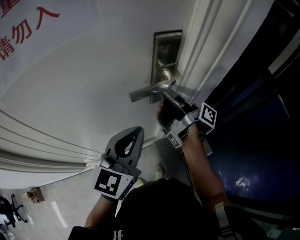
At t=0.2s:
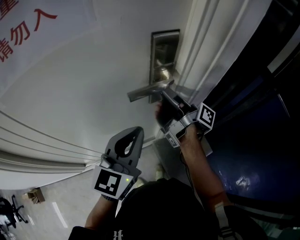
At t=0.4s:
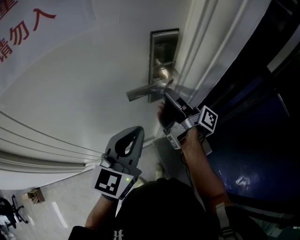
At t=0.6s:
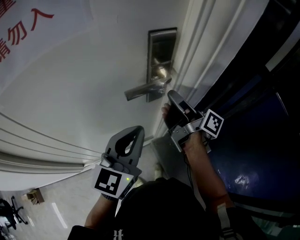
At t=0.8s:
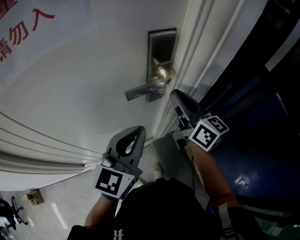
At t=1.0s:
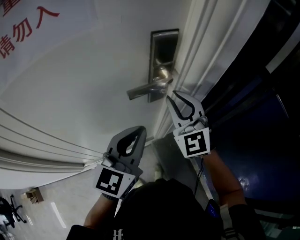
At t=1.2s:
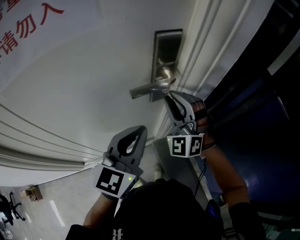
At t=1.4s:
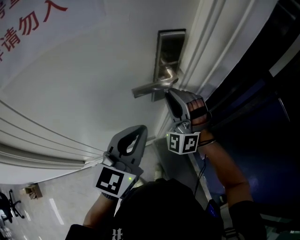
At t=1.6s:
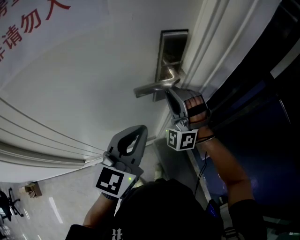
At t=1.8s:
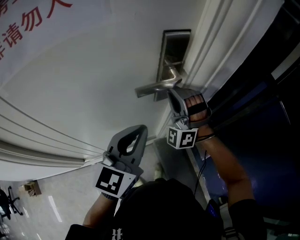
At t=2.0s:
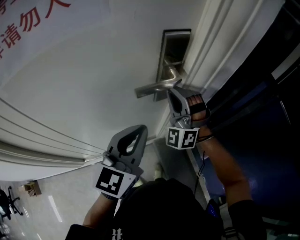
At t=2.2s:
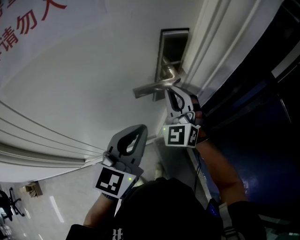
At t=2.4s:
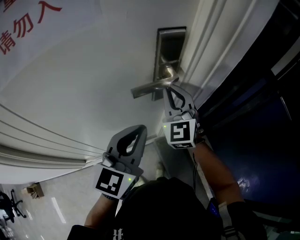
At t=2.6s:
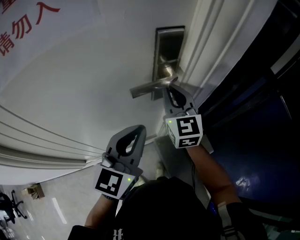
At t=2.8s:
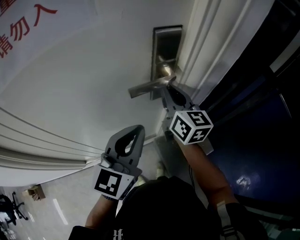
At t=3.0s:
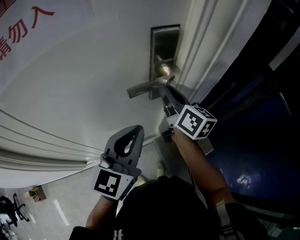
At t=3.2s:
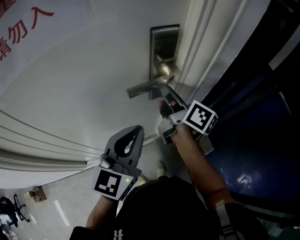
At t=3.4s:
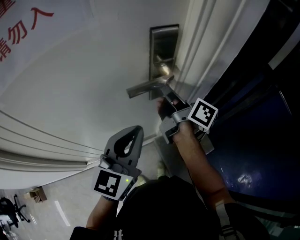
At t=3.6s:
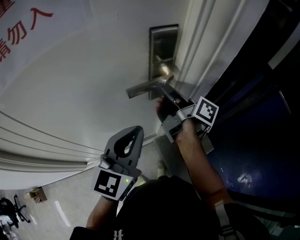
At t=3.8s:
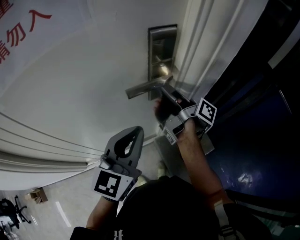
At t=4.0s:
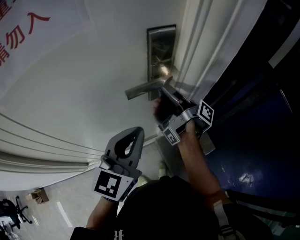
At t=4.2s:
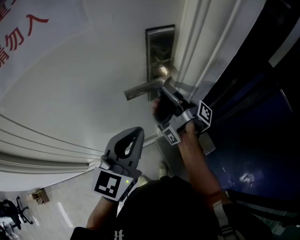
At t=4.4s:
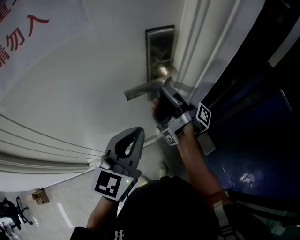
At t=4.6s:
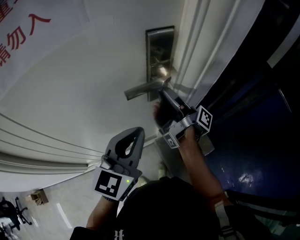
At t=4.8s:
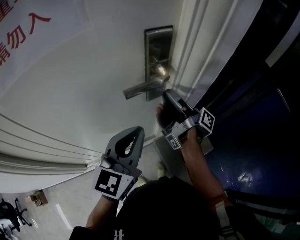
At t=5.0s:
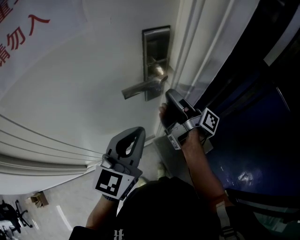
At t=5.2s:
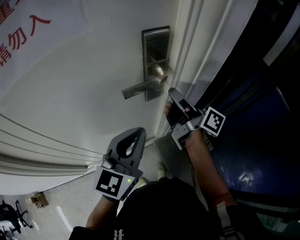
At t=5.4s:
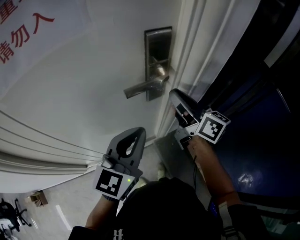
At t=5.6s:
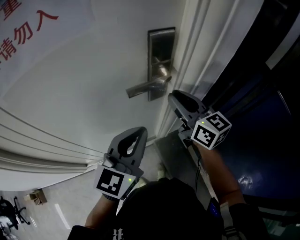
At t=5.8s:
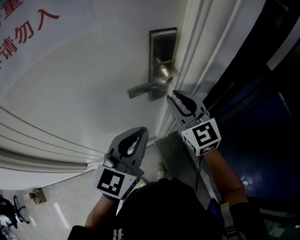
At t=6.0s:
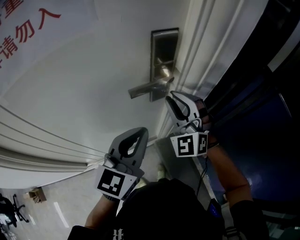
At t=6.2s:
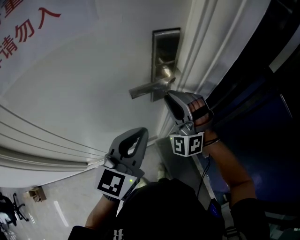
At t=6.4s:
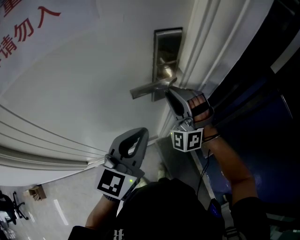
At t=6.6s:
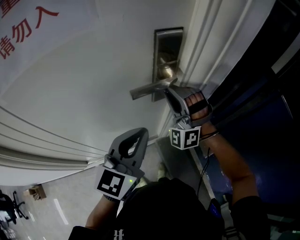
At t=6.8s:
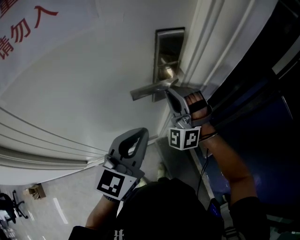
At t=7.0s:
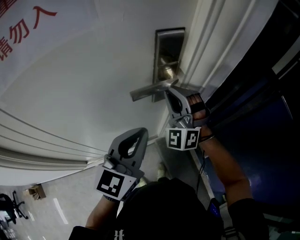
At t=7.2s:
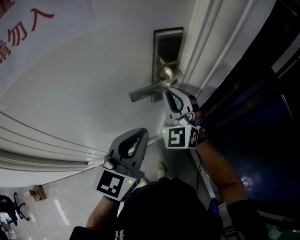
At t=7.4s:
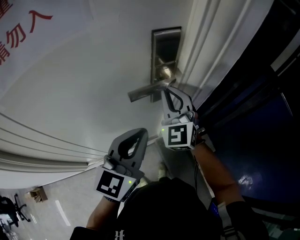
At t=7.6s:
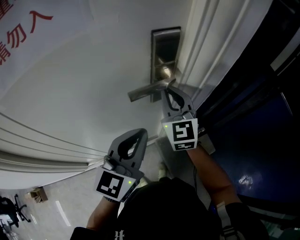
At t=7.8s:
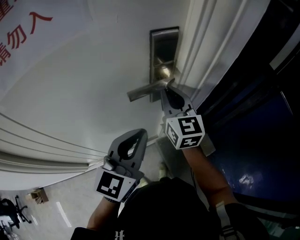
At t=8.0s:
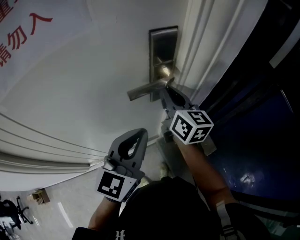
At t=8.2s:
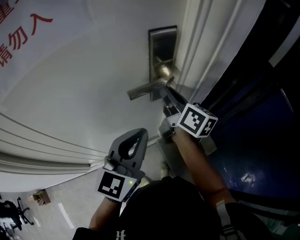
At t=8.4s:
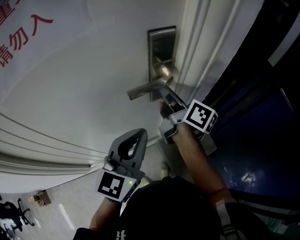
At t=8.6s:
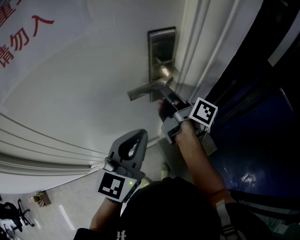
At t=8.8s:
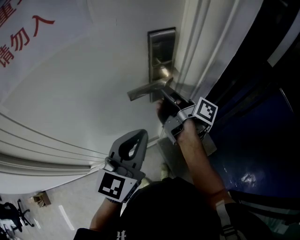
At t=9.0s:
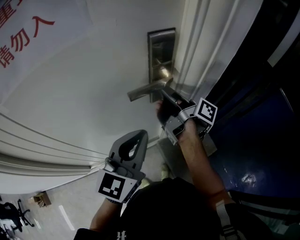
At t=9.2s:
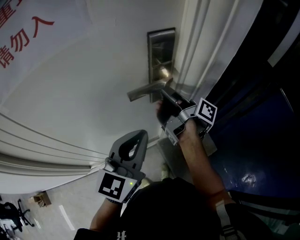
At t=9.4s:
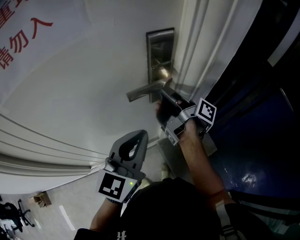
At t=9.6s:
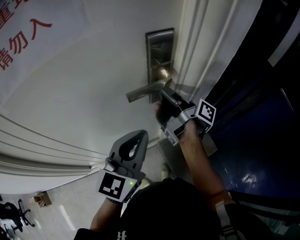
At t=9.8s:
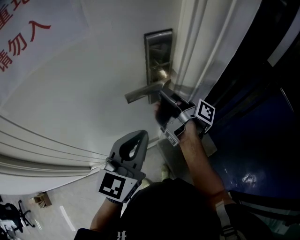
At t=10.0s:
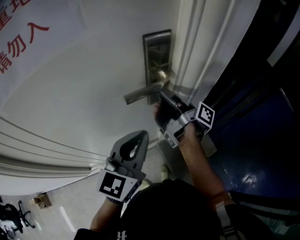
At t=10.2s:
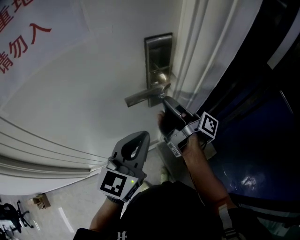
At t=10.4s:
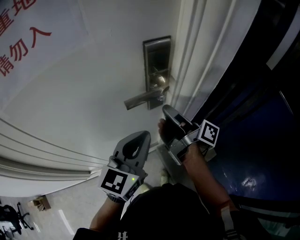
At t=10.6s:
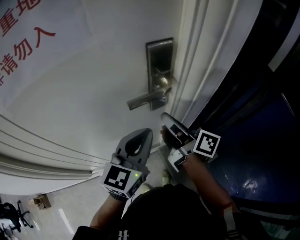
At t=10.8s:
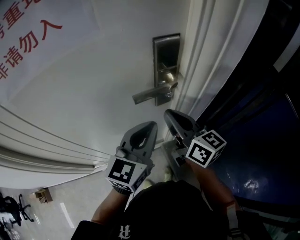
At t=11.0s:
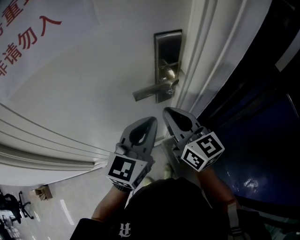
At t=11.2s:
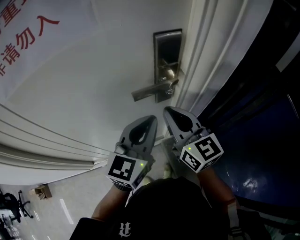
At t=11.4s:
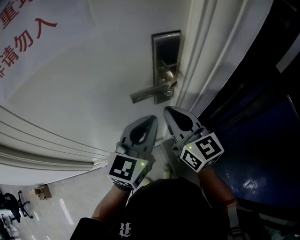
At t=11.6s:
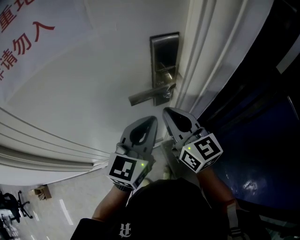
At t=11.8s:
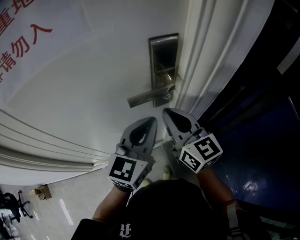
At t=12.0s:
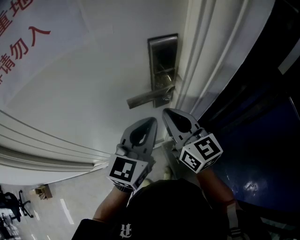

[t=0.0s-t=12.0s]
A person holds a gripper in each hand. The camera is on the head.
t=0.0s to t=1.6s: The right gripper turns by some 180 degrees.
t=1.6s to t=3.0s: The right gripper rolls clockwise, seen from behind, by about 120 degrees.
t=3.0s to t=4.4s: The right gripper rotates around the line of its fingers by some 60 degrees, clockwise from behind.
t=4.4s to t=6.0s: The right gripper goes about 5 cm backward, and rolls counterclockwise, seen from behind, by some 160 degrees.
t=6.0s to t=7.6s: The right gripper swivels about 40 degrees.
t=7.6s to t=9.0s: The right gripper rotates around the line of its fingers by roughly 110 degrees, clockwise from behind.
t=9.0s to t=10.4s: The grippers make only small movements.
t=10.4s to t=12.0s: The right gripper rotates around the line of its fingers by approximately 70 degrees, counterclockwise from behind.

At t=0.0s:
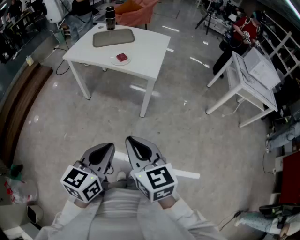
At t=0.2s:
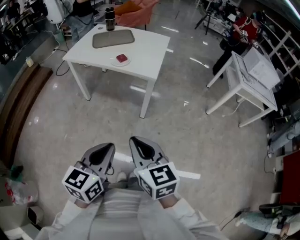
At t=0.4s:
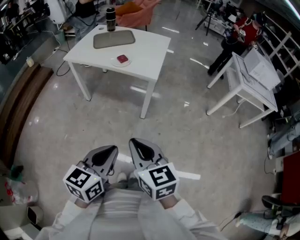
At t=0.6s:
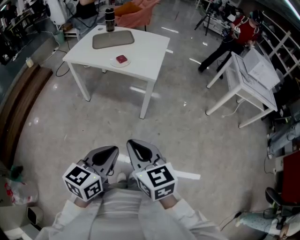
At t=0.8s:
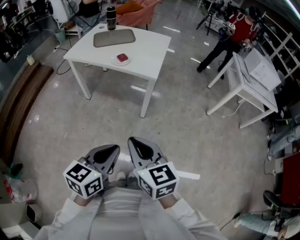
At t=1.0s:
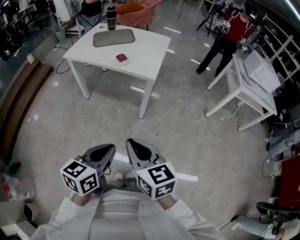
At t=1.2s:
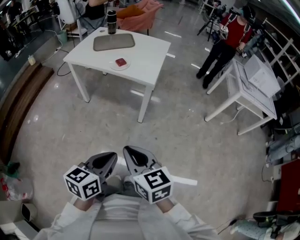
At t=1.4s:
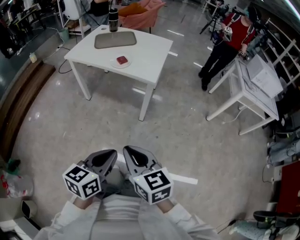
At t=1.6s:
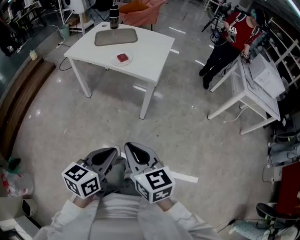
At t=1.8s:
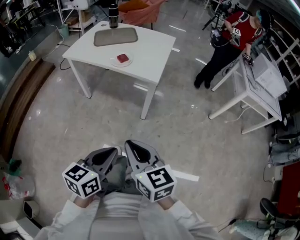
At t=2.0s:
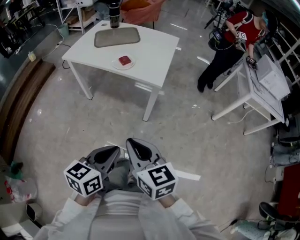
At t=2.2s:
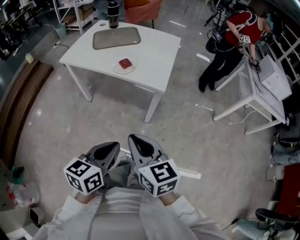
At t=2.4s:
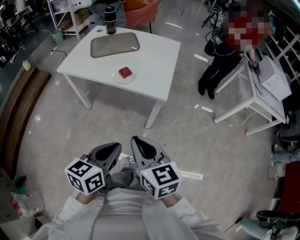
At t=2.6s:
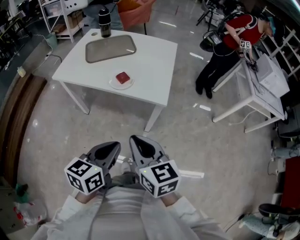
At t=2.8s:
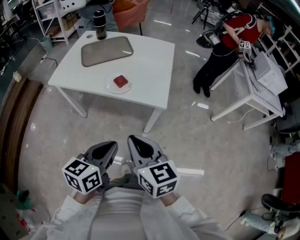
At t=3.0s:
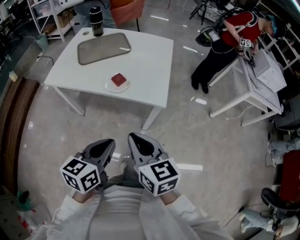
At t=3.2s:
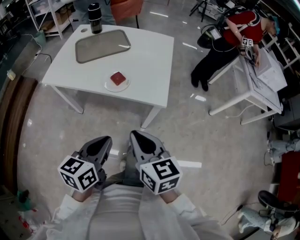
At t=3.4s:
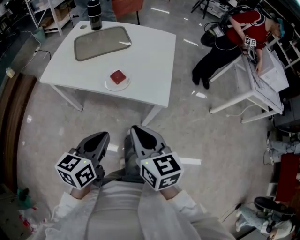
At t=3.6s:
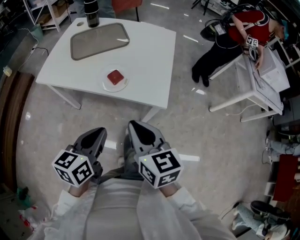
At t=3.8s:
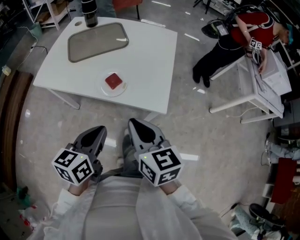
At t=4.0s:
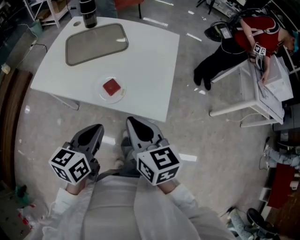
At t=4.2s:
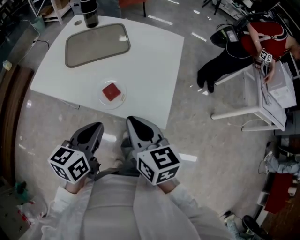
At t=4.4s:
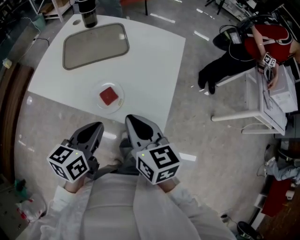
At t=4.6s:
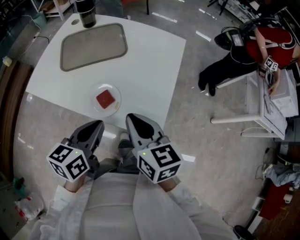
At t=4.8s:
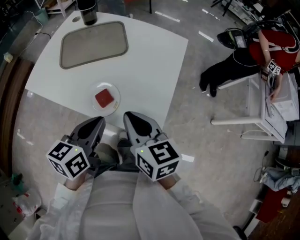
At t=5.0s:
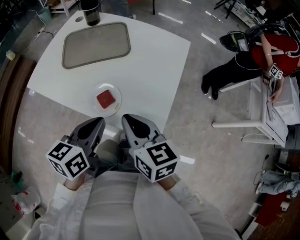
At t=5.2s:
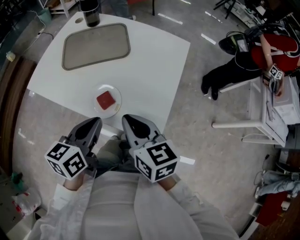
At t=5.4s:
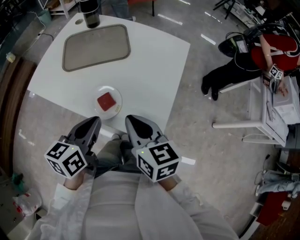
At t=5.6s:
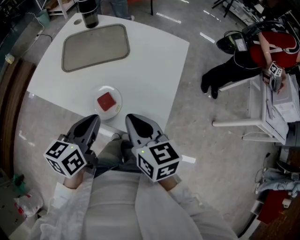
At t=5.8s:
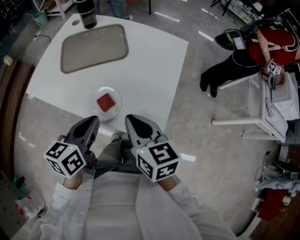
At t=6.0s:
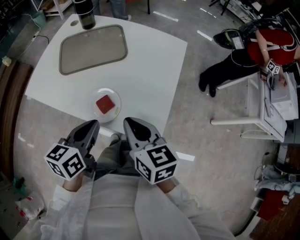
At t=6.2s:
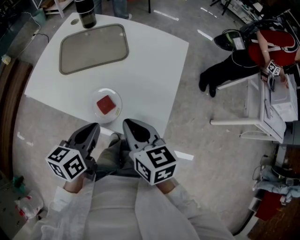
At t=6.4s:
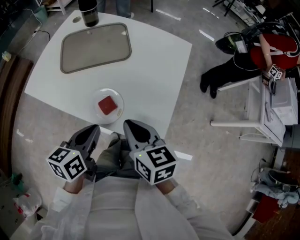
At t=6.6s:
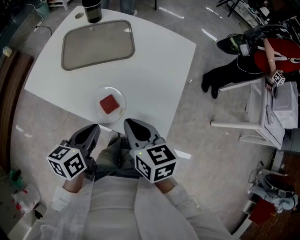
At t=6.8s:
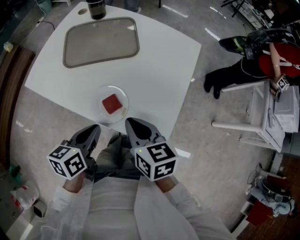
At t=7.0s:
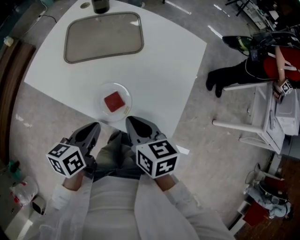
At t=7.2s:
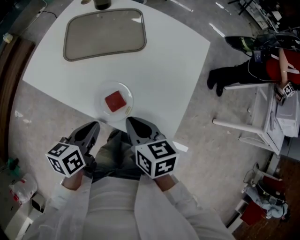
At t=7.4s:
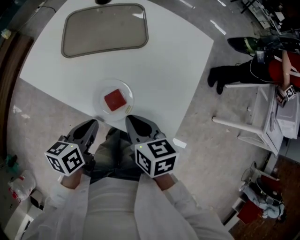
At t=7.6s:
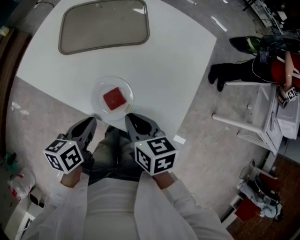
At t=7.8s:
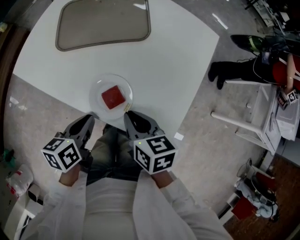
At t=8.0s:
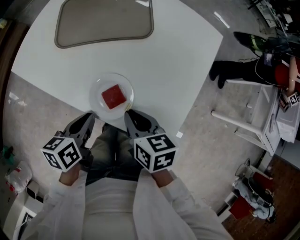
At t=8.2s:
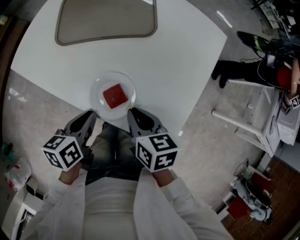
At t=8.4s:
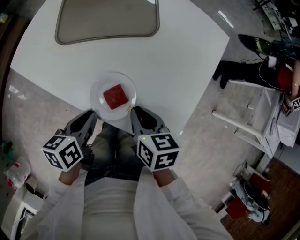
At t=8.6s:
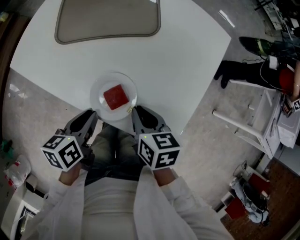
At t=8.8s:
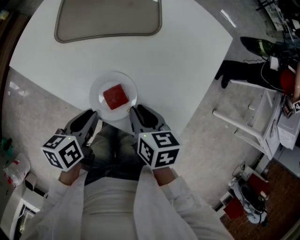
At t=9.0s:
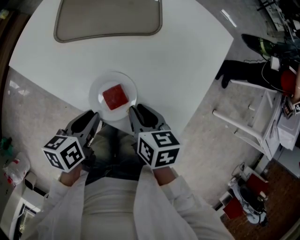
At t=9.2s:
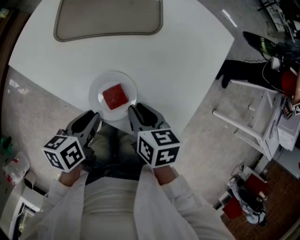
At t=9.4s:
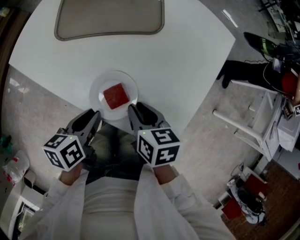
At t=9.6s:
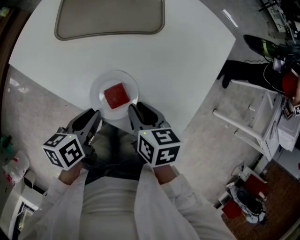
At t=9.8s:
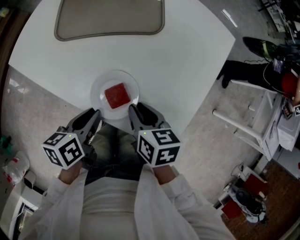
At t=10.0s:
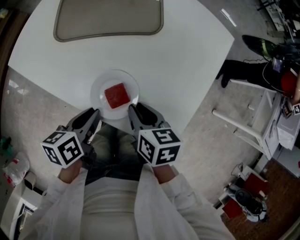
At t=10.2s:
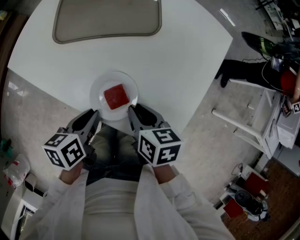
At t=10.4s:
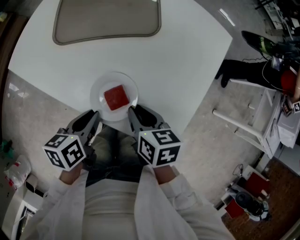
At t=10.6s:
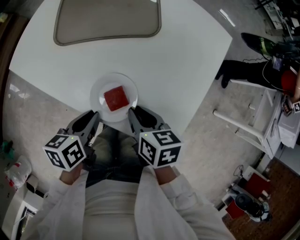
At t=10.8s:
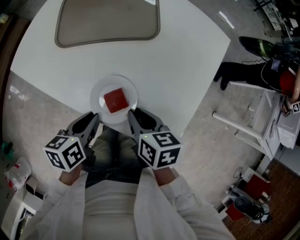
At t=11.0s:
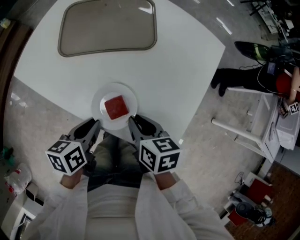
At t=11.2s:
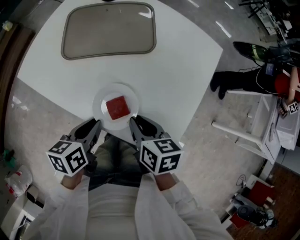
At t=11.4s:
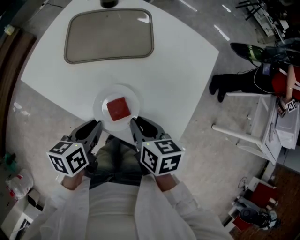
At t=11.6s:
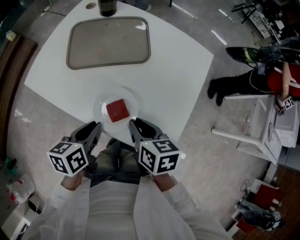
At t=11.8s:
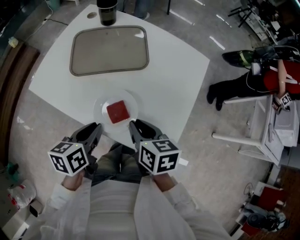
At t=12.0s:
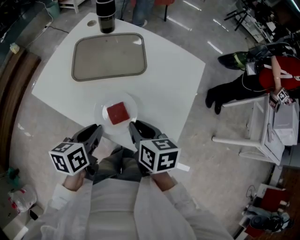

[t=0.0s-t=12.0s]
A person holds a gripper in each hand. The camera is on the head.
t=0.0s to t=1.6s: The left gripper ends up about 5 cm from where it was.
t=1.6s to t=3.0s: The right gripper is displaced forward by about 25 cm; the left gripper shifts about 30 cm forward and to the left.
t=3.0s to t=4.4s: The grippers both shift forward by approximately 25 cm.
t=4.4s to t=6.0s: The left gripper is displaced forward by roughly 5 cm.
t=6.0s to t=7.6s: The left gripper heads downward and to the left, covering about 10 cm, while the right gripper heads downward, covering approximately 10 cm.
t=7.6s to t=10.4s: The grippers stay close to where they were, moving slightly.
t=10.4s to t=12.0s: Both grippers travel together upward, approximately 10 cm.
